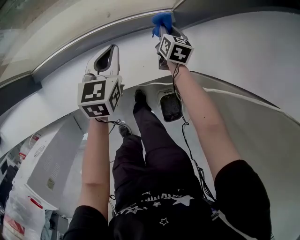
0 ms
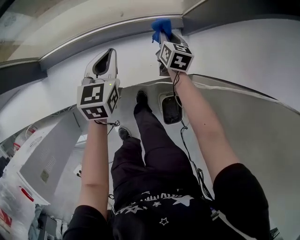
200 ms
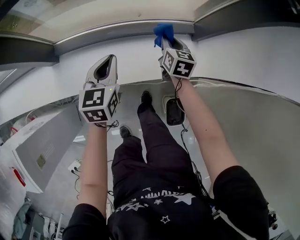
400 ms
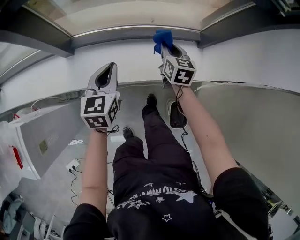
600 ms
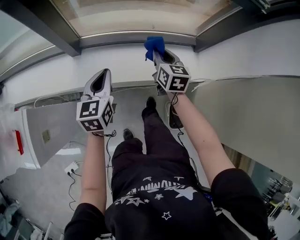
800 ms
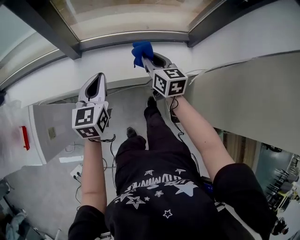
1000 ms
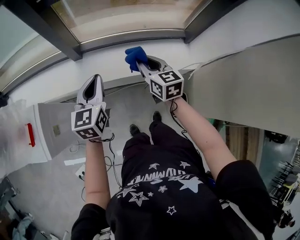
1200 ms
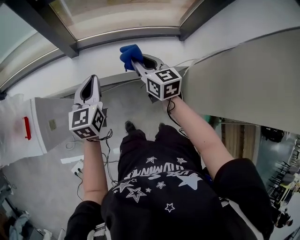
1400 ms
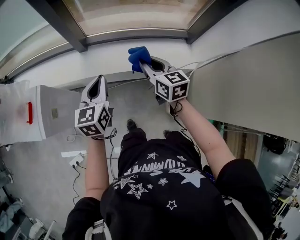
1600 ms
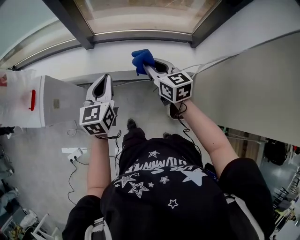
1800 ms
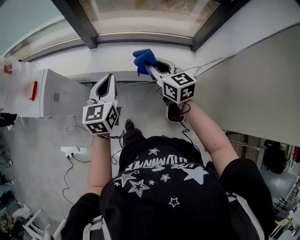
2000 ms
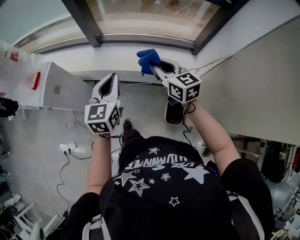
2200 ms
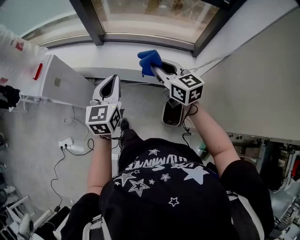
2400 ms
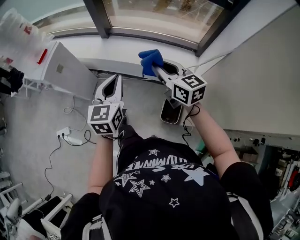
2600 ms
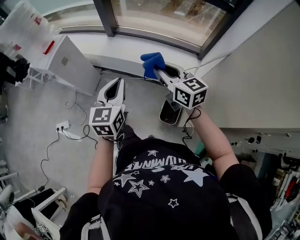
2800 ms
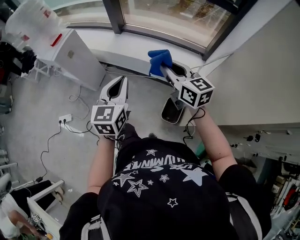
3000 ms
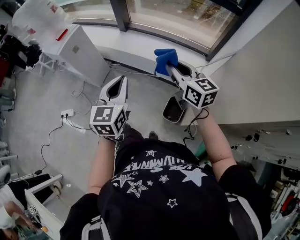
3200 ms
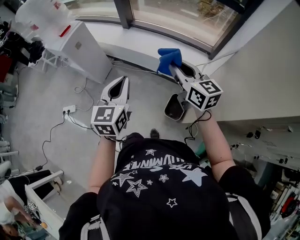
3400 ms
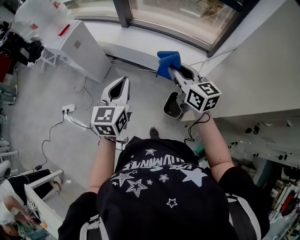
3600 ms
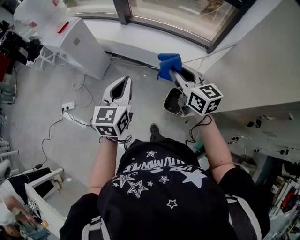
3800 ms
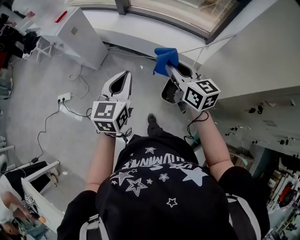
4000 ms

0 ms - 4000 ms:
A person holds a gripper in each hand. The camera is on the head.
0 ms - 1400 ms: The pair of grippers is taken roughly 50 cm. The left gripper turns by approximately 20 degrees, while the right gripper changes its angle by some 40 degrees.
1400 ms - 2600 ms: The left gripper goes approximately 30 cm backward and to the right, while the right gripper moves backward, to the right and upward, roughly 25 cm, and turns by approximately 30 degrees.
2600 ms - 4000 ms: The grippers both shift backward by roughly 20 cm.

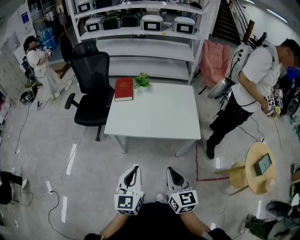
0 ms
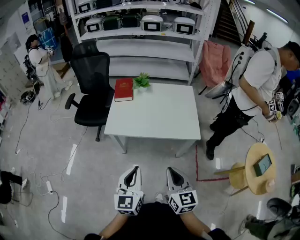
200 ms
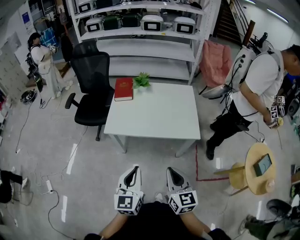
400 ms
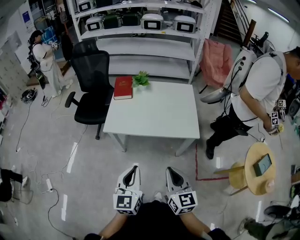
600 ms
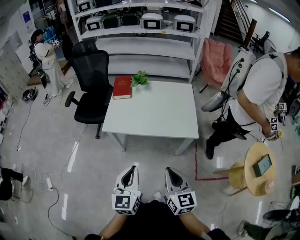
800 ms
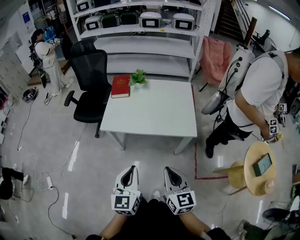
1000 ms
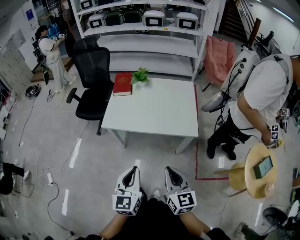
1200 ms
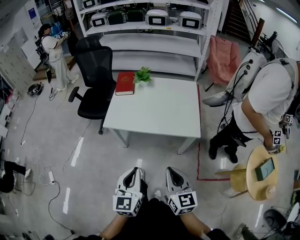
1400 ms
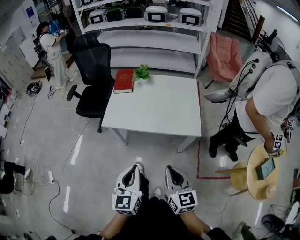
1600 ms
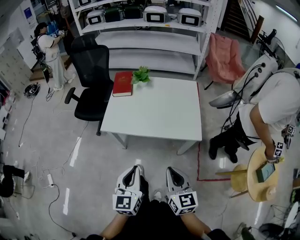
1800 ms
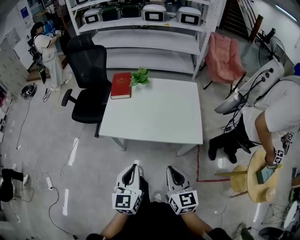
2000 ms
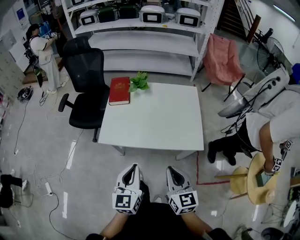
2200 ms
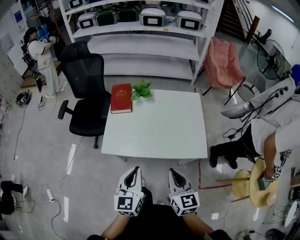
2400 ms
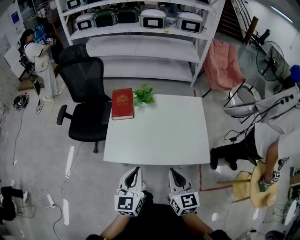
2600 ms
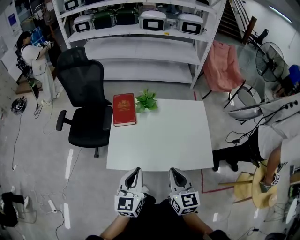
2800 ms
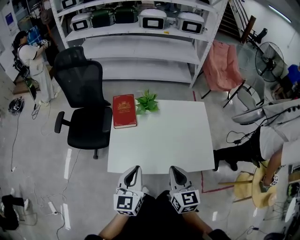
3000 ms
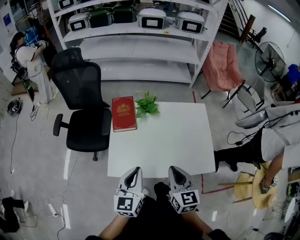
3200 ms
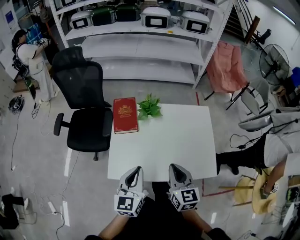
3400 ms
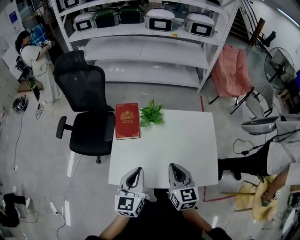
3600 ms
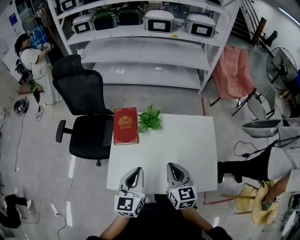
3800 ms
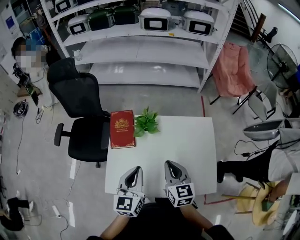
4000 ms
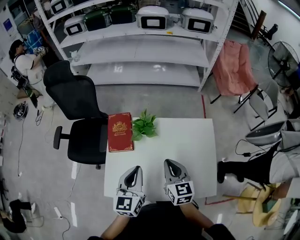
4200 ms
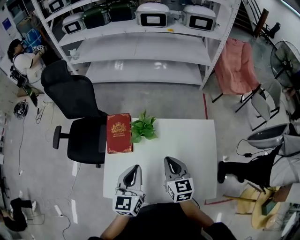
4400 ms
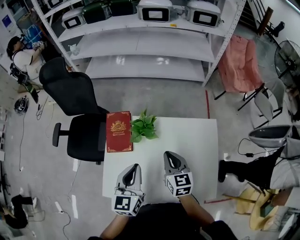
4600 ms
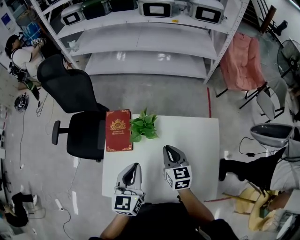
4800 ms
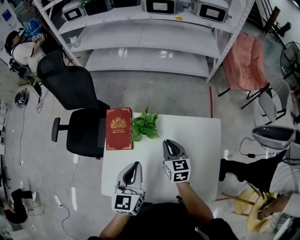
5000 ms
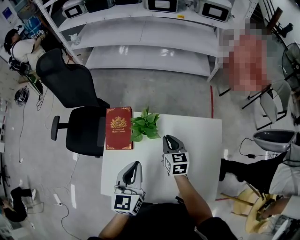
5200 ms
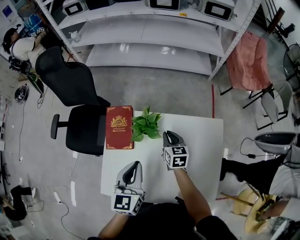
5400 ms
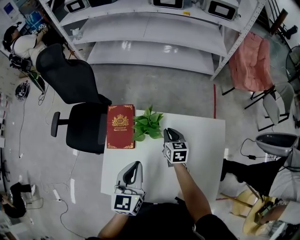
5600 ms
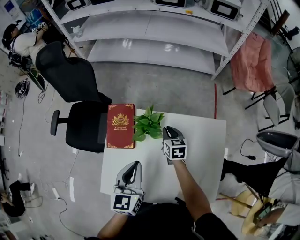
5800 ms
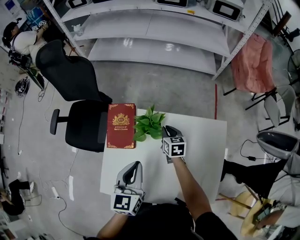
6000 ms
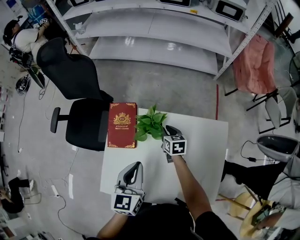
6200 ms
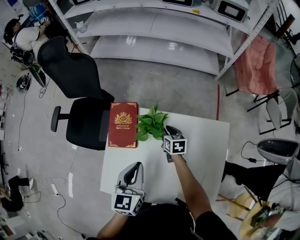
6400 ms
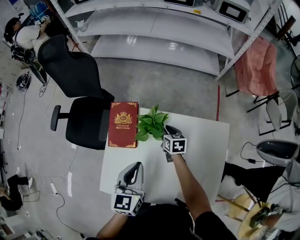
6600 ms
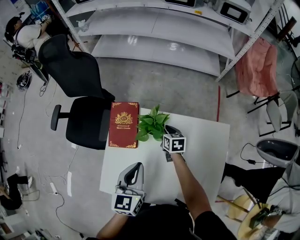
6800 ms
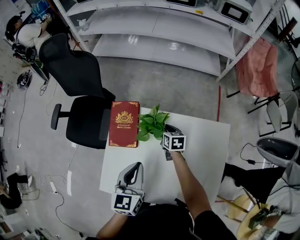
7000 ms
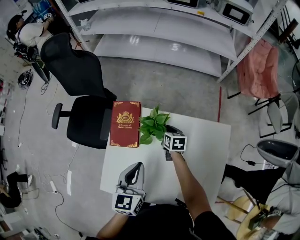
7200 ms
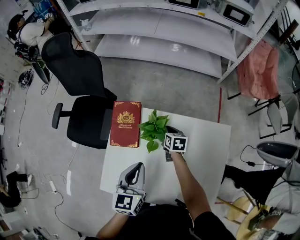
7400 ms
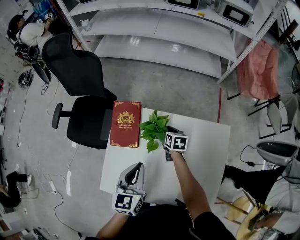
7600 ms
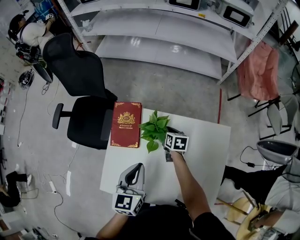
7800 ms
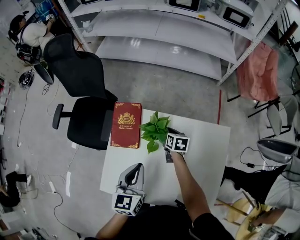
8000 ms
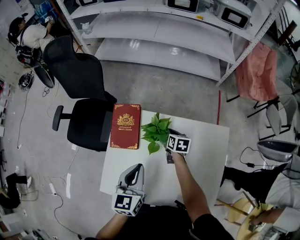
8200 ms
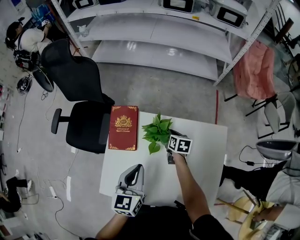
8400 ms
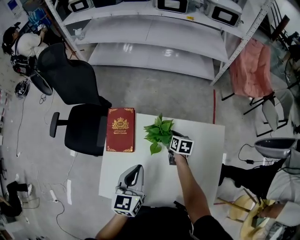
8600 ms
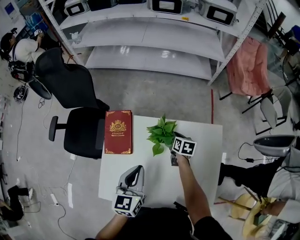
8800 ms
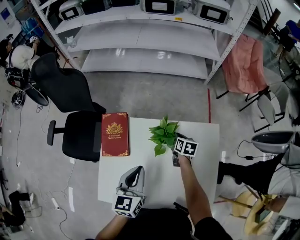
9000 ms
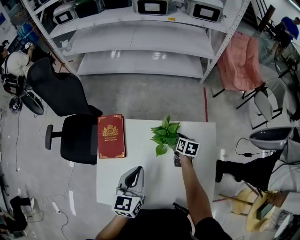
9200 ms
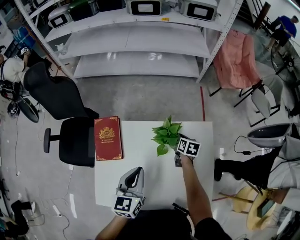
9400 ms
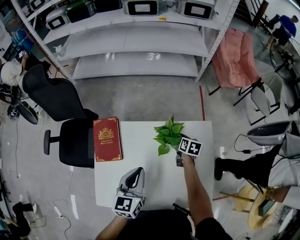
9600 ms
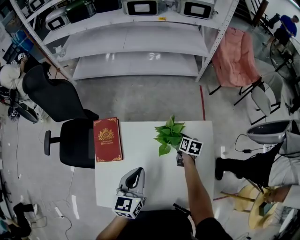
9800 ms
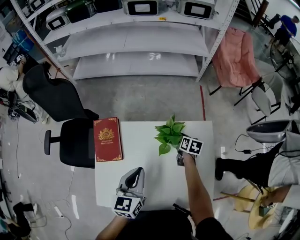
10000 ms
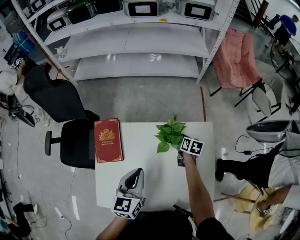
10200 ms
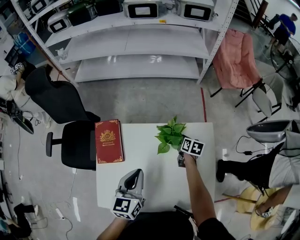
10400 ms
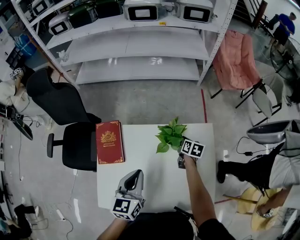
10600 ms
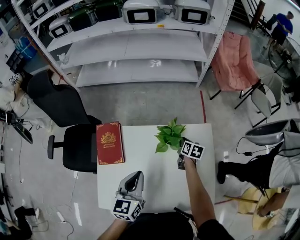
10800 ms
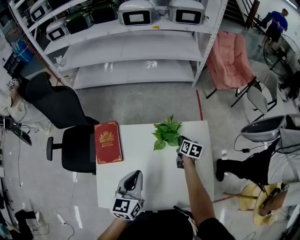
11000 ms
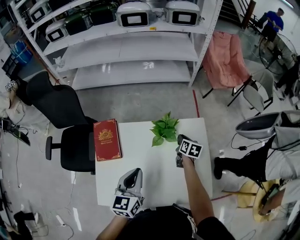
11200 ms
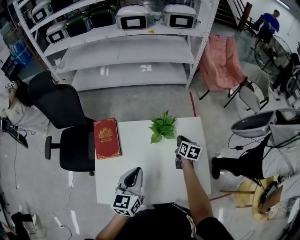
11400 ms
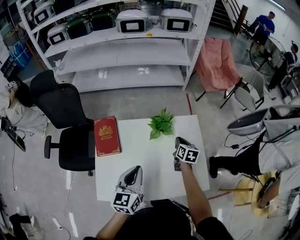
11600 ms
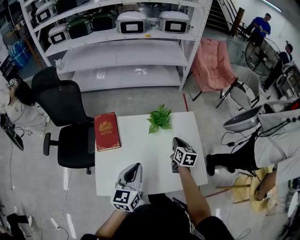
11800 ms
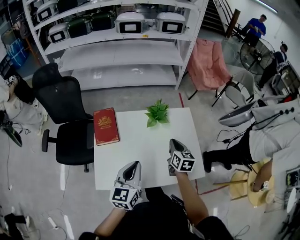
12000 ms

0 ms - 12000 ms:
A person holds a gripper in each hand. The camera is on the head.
0 ms - 1600 ms: The grippers both shift to the right by roughly 5 cm.
1600 ms - 3000 ms: The two grippers go roughly 35 cm forward.
3000 ms - 4400 ms: The grippers both shift forward by about 25 cm.
4400 ms - 6000 ms: The right gripper heads forward and downward, covering some 25 cm. Meanwhile the left gripper heads forward and downward, covering about 10 cm.
6000 ms - 7600 ms: There are only small adjustments of the grippers.
7600 ms - 9000 ms: The left gripper shifts roughly 5 cm to the right; the right gripper heads to the right, covering some 15 cm.
9000 ms - 10400 ms: The right gripper is displaced to the right by about 10 cm.
10400 ms - 12000 ms: The left gripper shifts approximately 20 cm backward; the right gripper goes about 30 cm backward and upward, and swivels about 30 degrees.

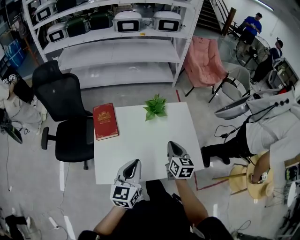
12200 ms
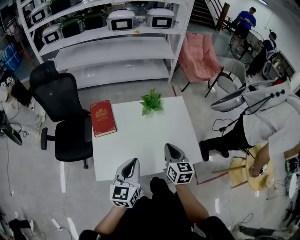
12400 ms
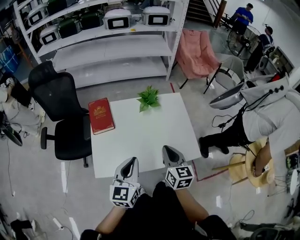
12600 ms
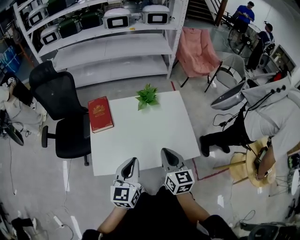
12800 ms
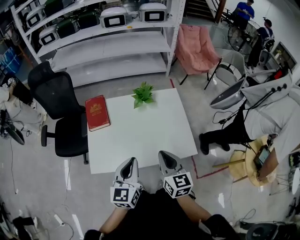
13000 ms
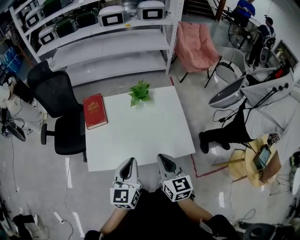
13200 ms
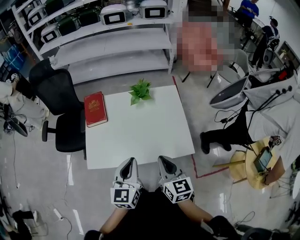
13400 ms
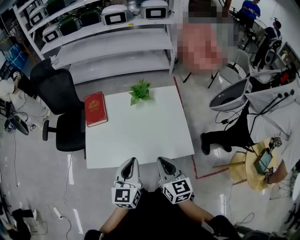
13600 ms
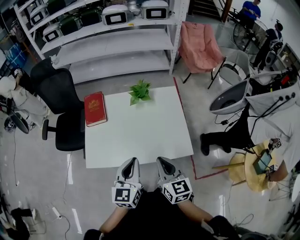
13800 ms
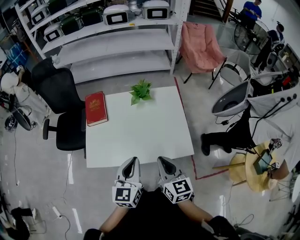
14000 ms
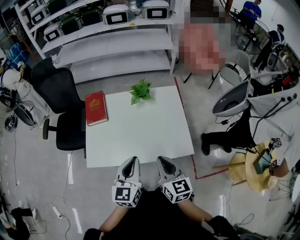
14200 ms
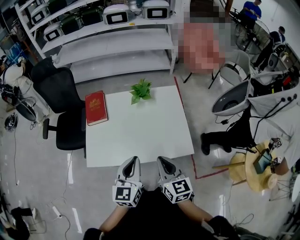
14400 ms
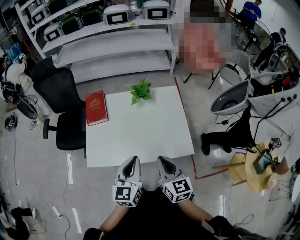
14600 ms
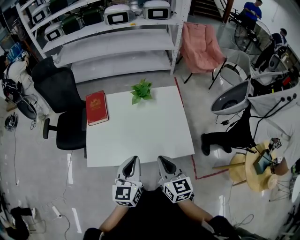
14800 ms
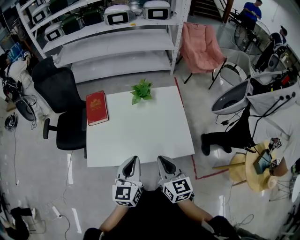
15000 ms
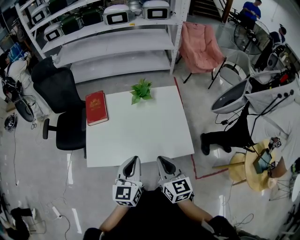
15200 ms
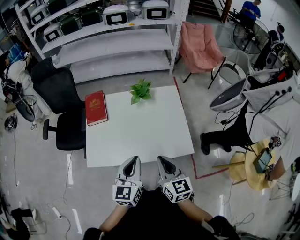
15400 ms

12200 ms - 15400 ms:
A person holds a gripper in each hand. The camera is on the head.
12200 ms - 13800 ms: The left gripper moves to the right and backward, roughly 15 cm, while the right gripper moves backward, about 20 cm.
13800 ms - 15400 ms: Both grippers stay about where they are.

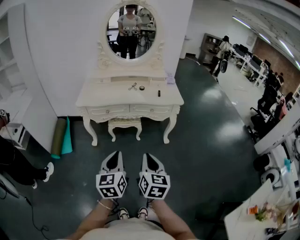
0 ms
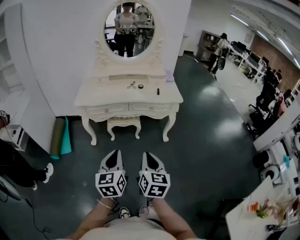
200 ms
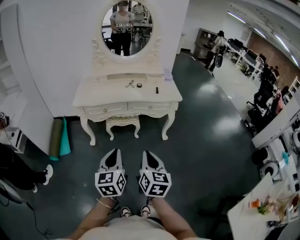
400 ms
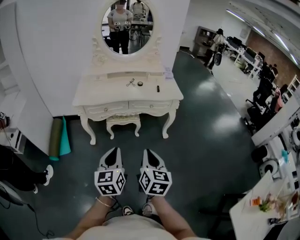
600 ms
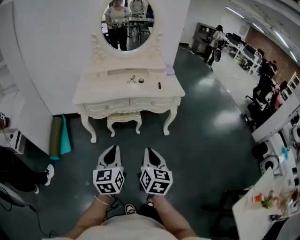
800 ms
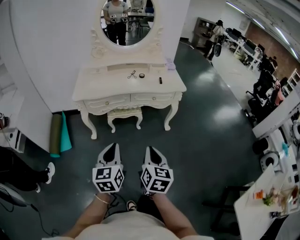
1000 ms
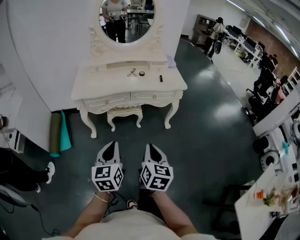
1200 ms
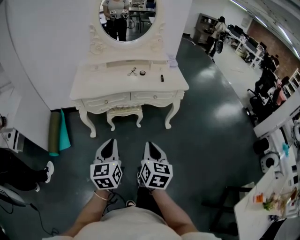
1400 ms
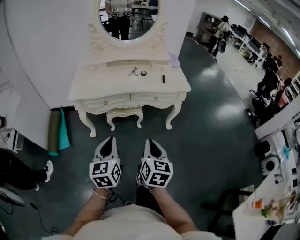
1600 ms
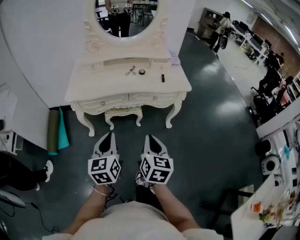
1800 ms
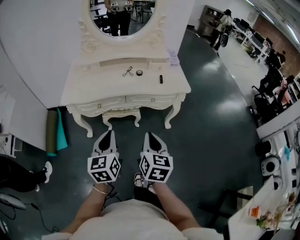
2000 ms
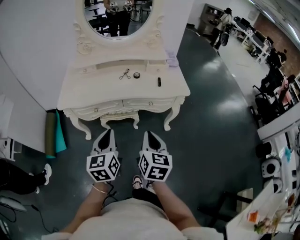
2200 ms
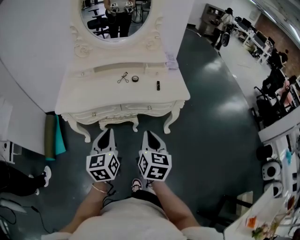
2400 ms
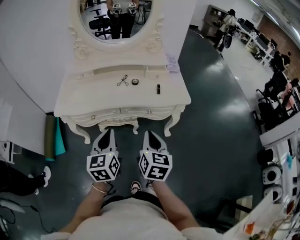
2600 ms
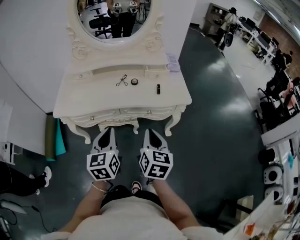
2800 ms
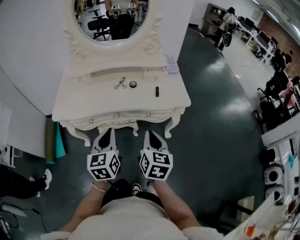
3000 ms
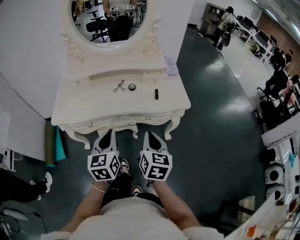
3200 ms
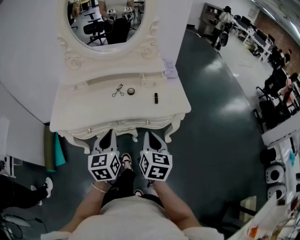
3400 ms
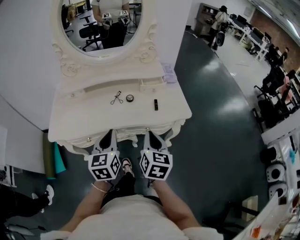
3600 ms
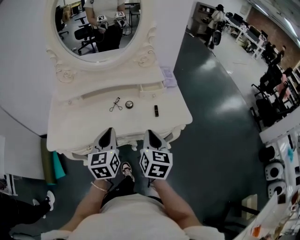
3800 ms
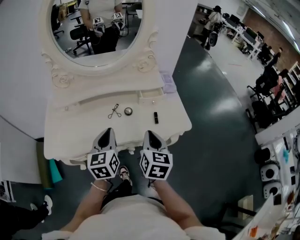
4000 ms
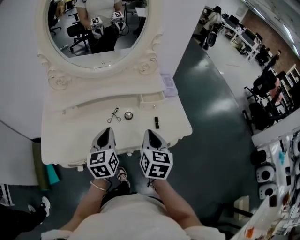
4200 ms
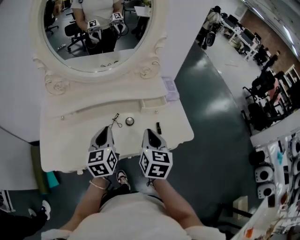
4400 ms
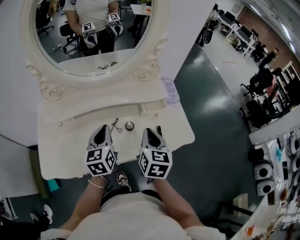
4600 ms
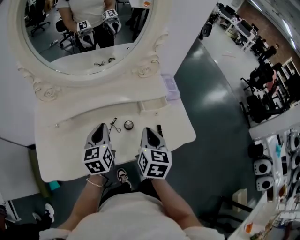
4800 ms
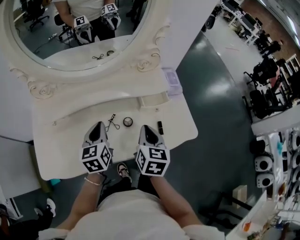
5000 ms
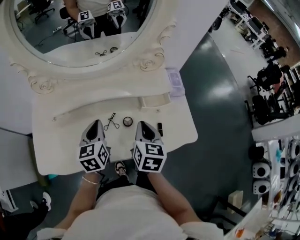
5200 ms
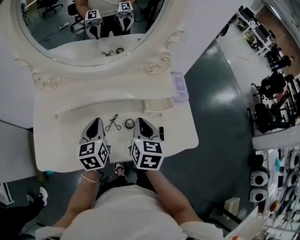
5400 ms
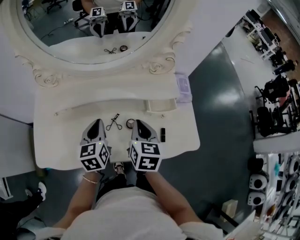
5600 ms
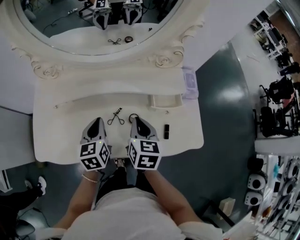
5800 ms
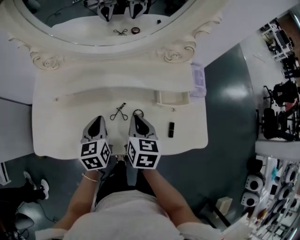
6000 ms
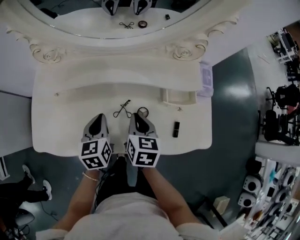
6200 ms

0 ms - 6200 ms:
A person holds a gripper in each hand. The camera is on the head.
0 ms - 1600 ms: The right gripper heads forward, covering approximately 10 cm; the left gripper heads forward and to the left, covering about 15 cm.
1600 ms - 3200 ms: The grippers both shift forward by approximately 25 cm.
3200 ms - 4600 ms: Both grippers move forward, about 30 cm.
4600 ms - 6200 ms: The right gripper moves downward, to the left and forward, about 20 cm, and turns by about 20 degrees. The left gripper shifts about 10 cm downward.
